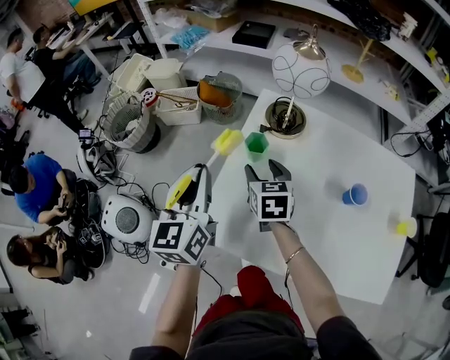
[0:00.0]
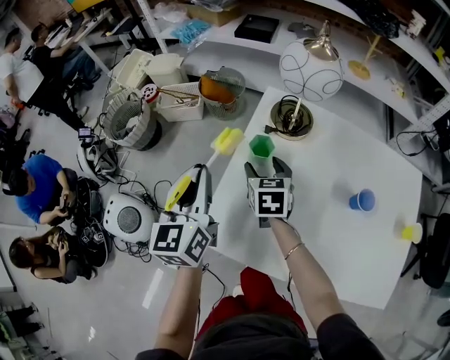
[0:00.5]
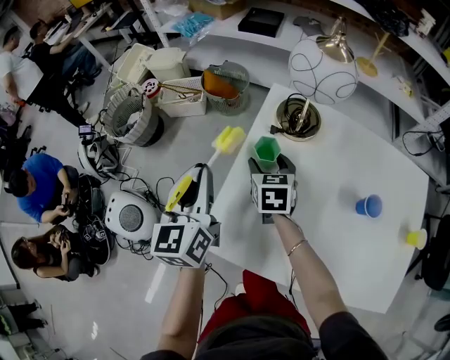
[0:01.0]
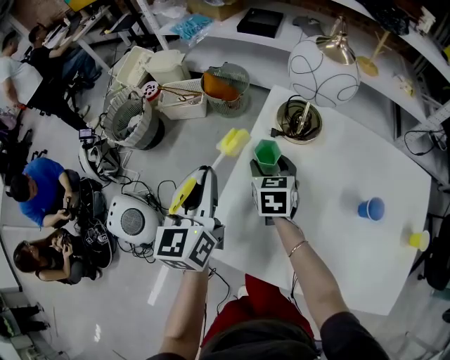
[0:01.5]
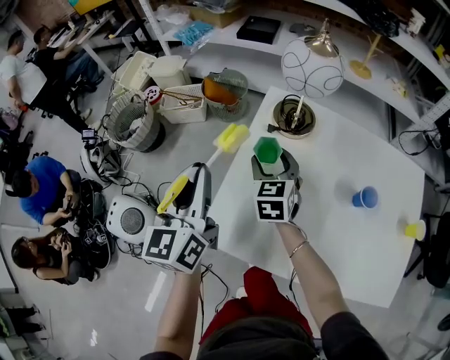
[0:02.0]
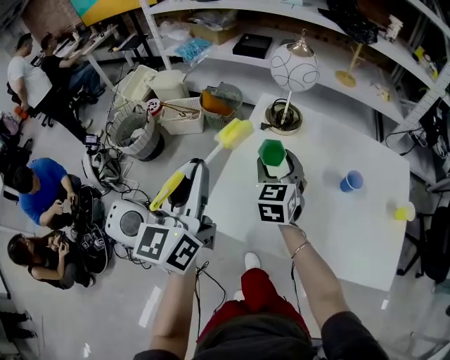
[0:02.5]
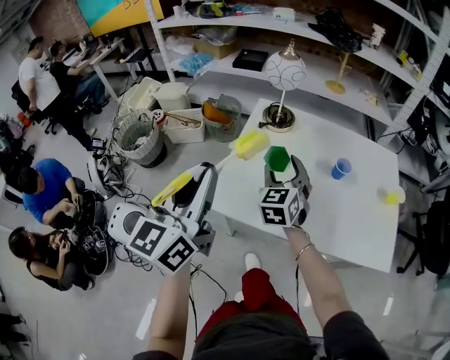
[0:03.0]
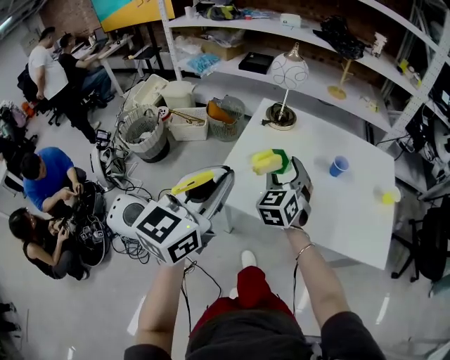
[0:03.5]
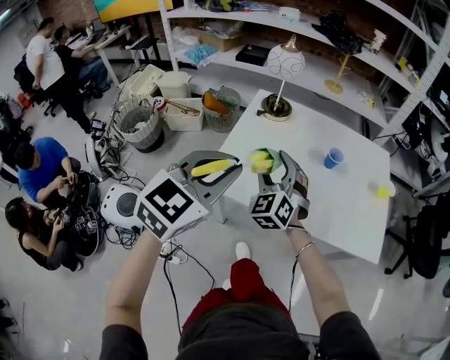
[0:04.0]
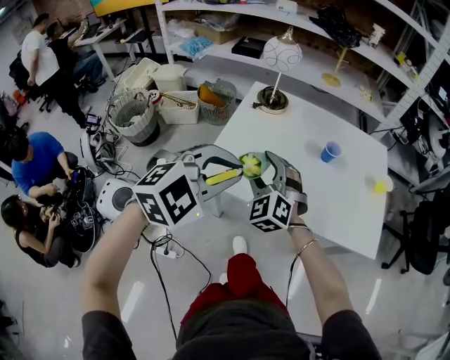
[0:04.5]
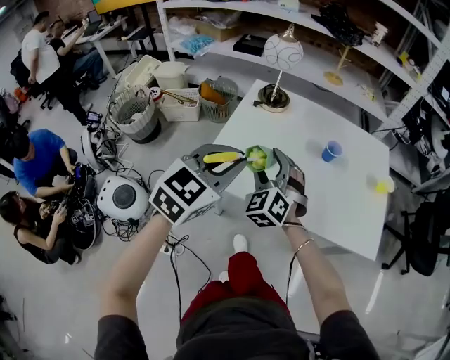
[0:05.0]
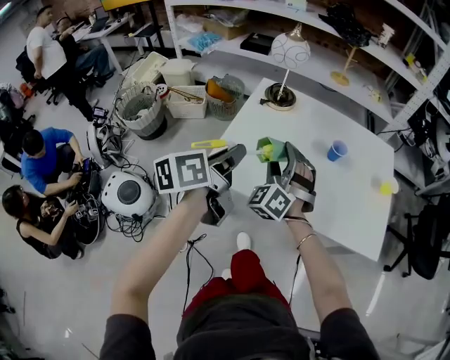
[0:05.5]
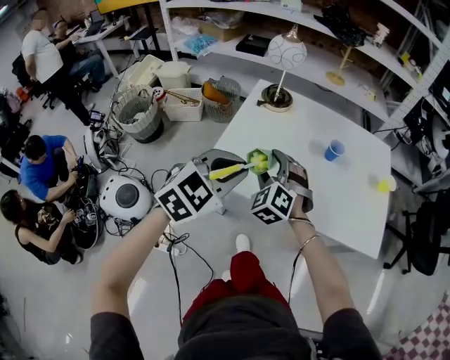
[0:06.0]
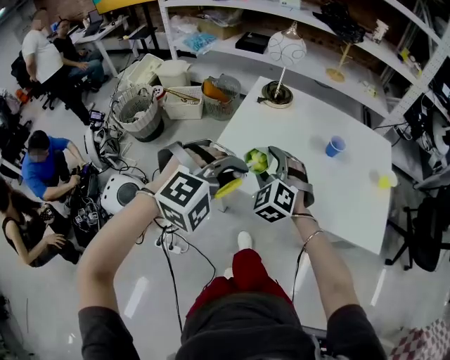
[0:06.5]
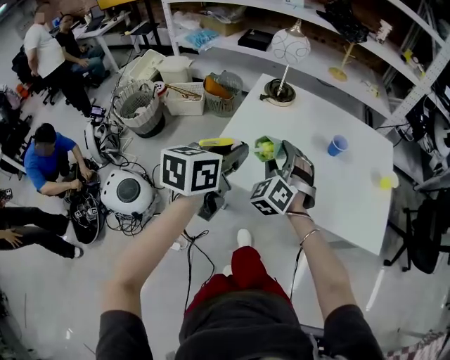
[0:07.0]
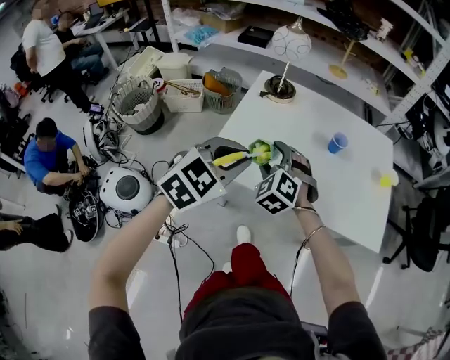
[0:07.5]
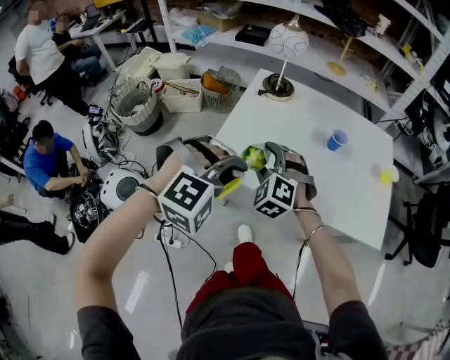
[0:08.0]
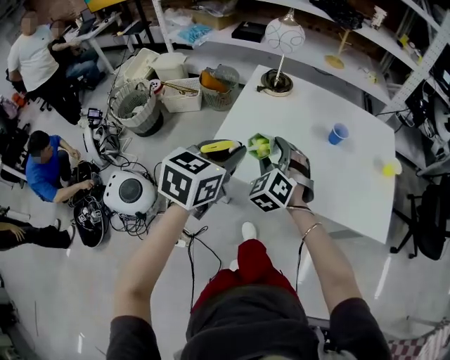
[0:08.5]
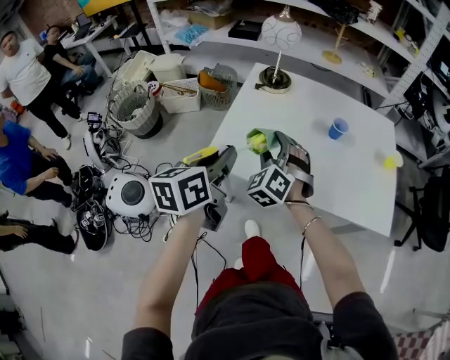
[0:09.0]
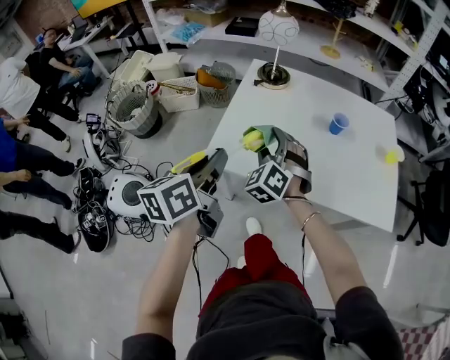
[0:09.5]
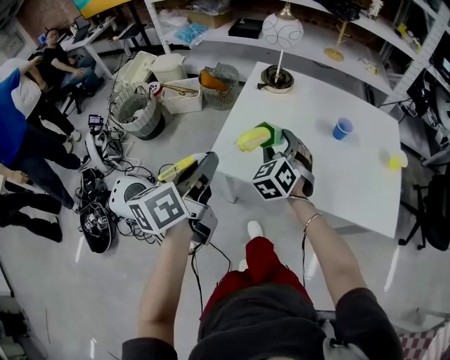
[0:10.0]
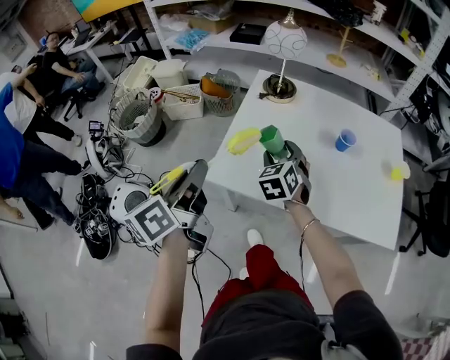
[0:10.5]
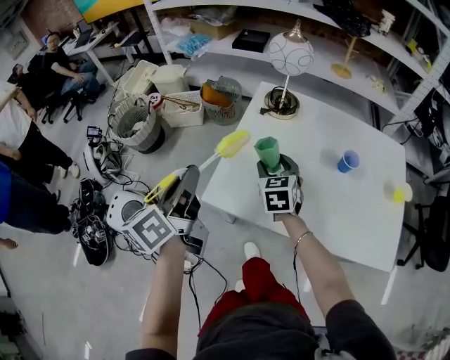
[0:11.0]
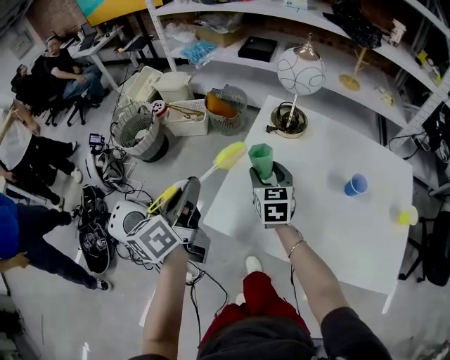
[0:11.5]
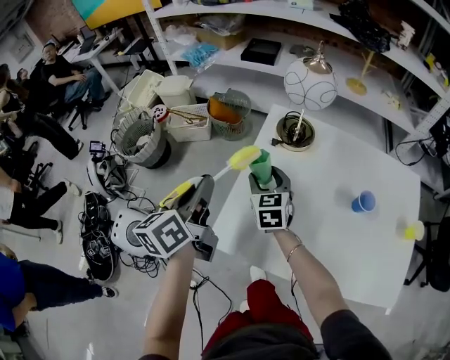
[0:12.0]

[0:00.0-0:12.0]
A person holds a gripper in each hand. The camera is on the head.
0:02.0 to 0:04.0: The right gripper heads backward and upward, covering roughly 25 cm, and turns by approximately 40 degrees, while the left gripper moves backward and to the right, approximately 25 cm, and rotates some 50 degrees.
0:04.0 to 0:06.0: The left gripper moves downward, approximately 10 cm. The right gripper ends up about 5 cm from where it was.
0:06.0 to 0:08.0: The left gripper rotates around the line of its fingers by roughly 50 degrees, clockwise from behind.
0:08.0 to 0:10.0: The right gripper moves forward, roughly 5 cm, and turns by about 30 degrees; the left gripper moves to the left, some 10 cm, and twists approximately 120 degrees counterclockwise, seen from behind.
0:10.0 to 0:12.0: The left gripper shifts some 20 cm forward. The right gripper goes some 20 cm forward and to the left, and turns by about 40 degrees.

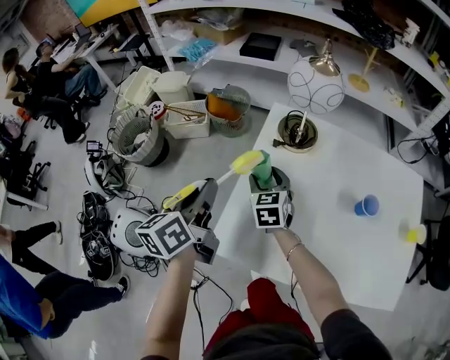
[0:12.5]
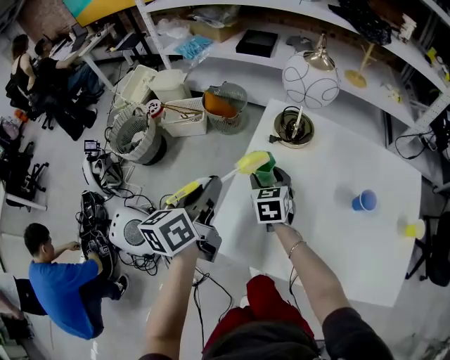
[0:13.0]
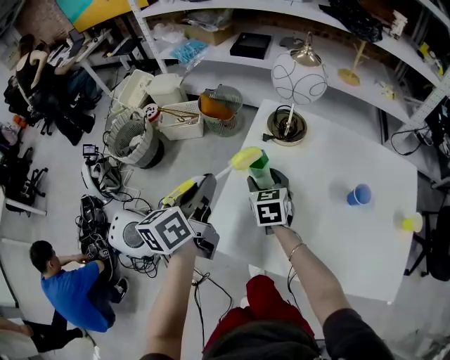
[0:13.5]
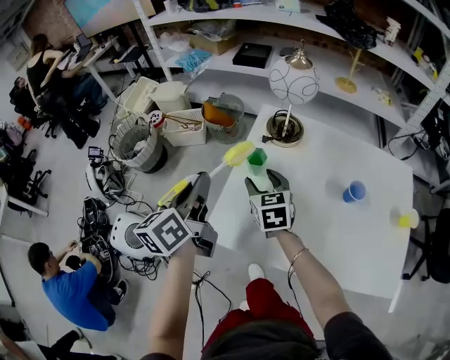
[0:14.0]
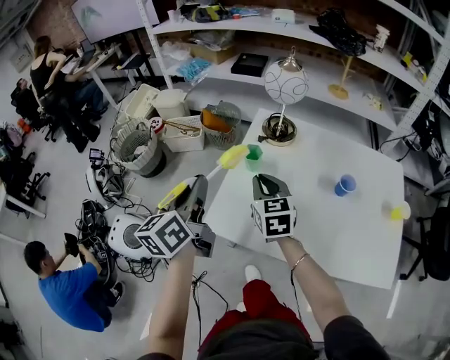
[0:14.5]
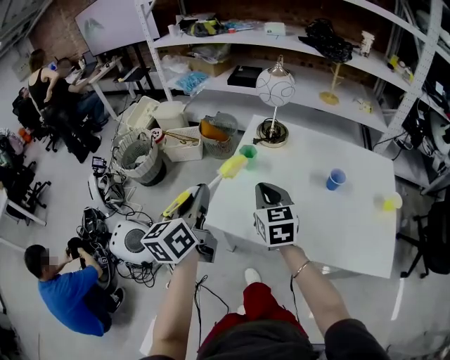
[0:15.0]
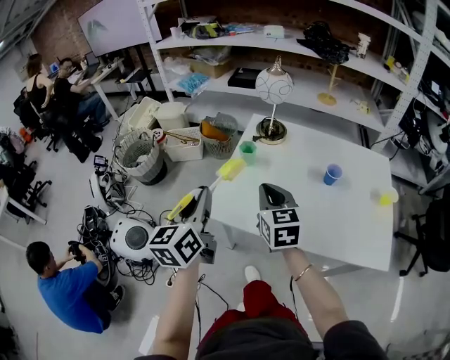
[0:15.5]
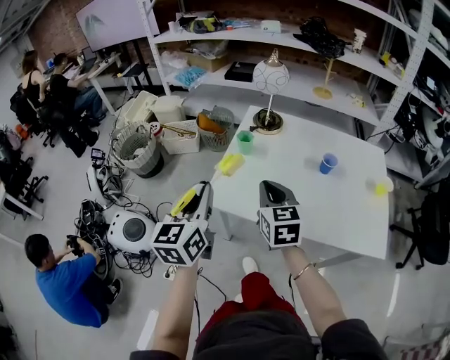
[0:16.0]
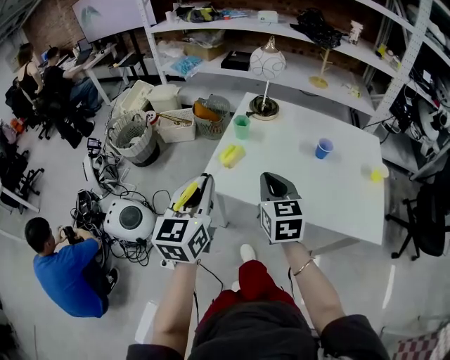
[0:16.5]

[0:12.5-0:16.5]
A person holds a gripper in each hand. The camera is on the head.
0:12.5 to 0:14.5: The grippers both shift backward and upward by approximately 15 cm. The right gripper closes up.
0:14.5 to 0:16.5: The grippers both shift backward by about 20 cm. The left gripper turns by roughly 30 degrees.

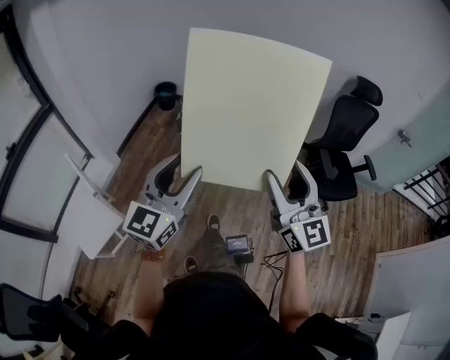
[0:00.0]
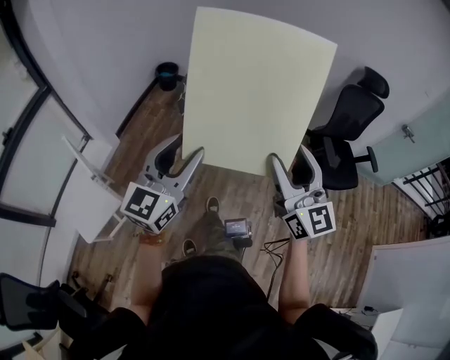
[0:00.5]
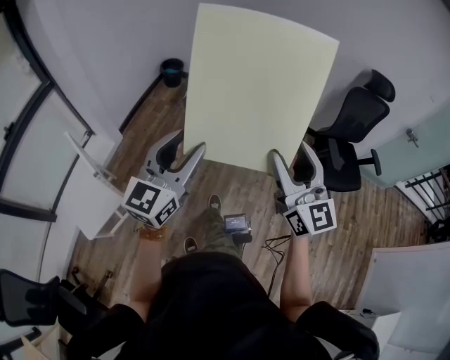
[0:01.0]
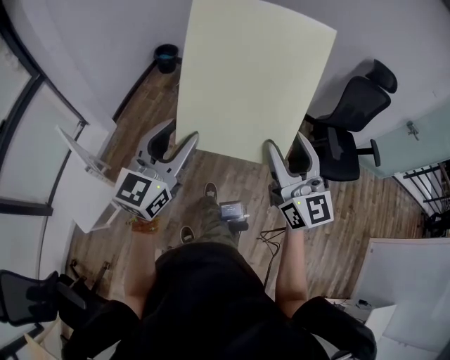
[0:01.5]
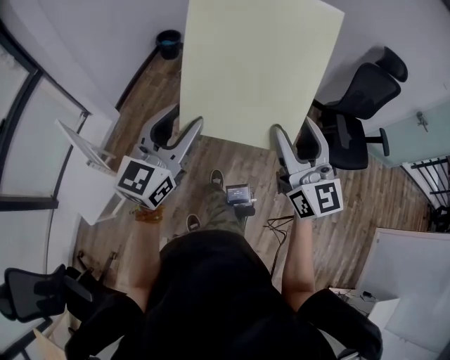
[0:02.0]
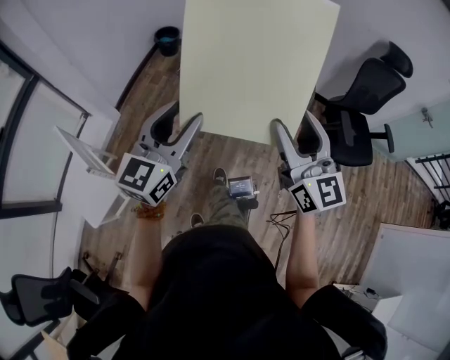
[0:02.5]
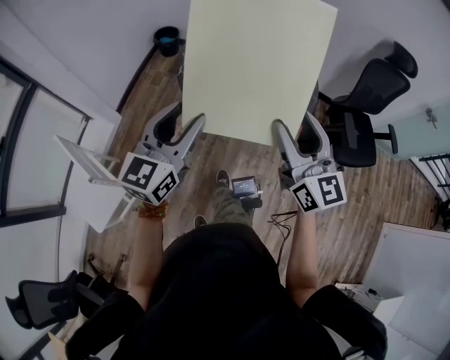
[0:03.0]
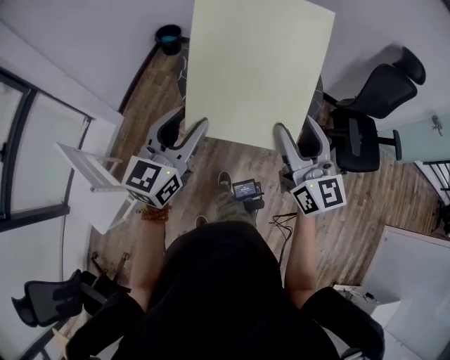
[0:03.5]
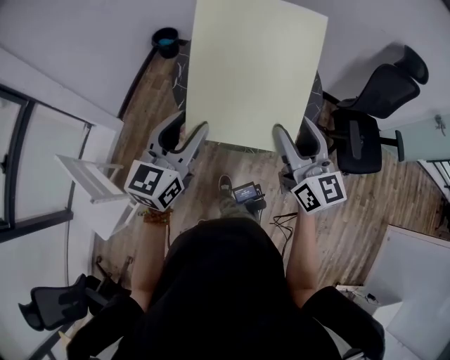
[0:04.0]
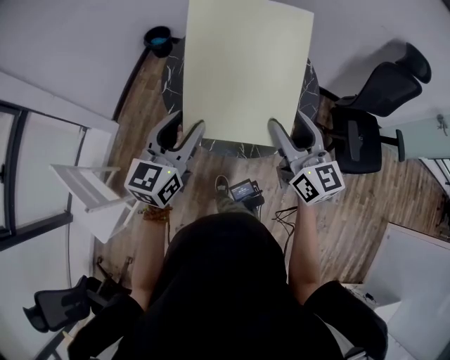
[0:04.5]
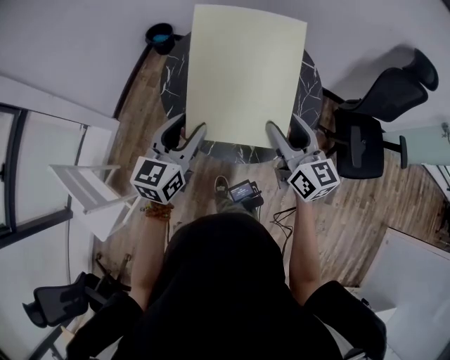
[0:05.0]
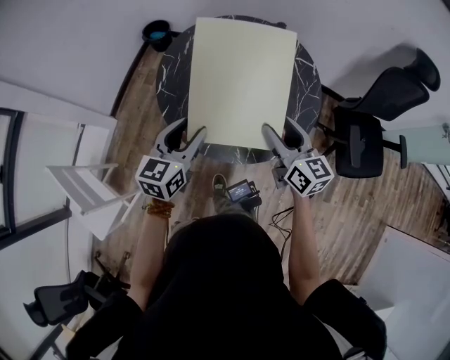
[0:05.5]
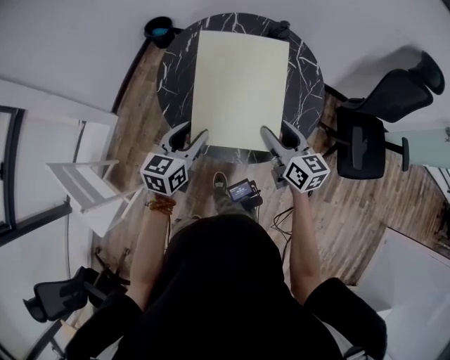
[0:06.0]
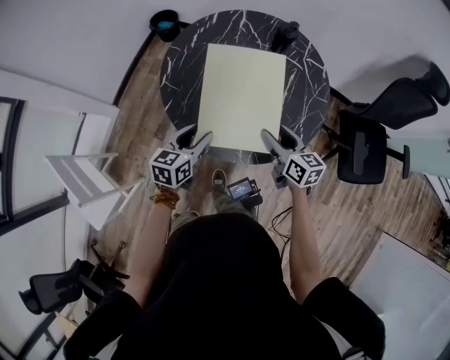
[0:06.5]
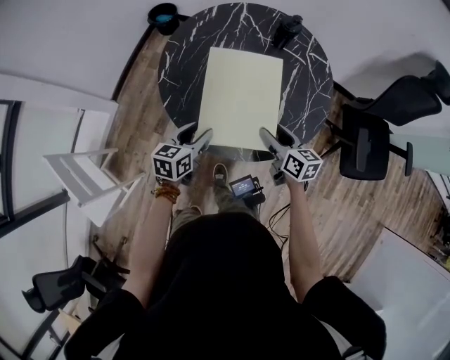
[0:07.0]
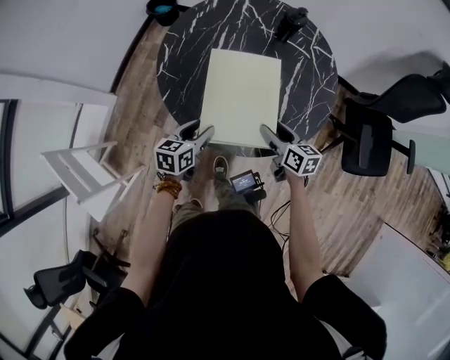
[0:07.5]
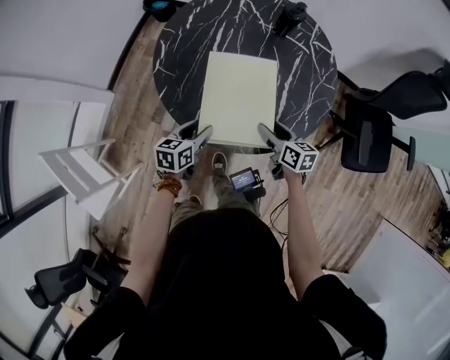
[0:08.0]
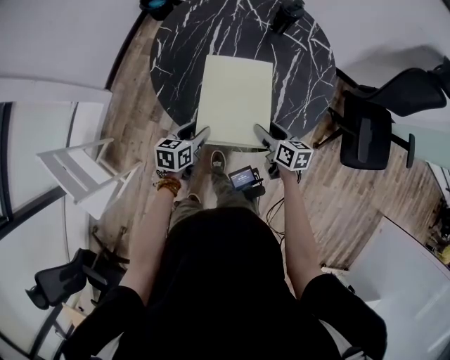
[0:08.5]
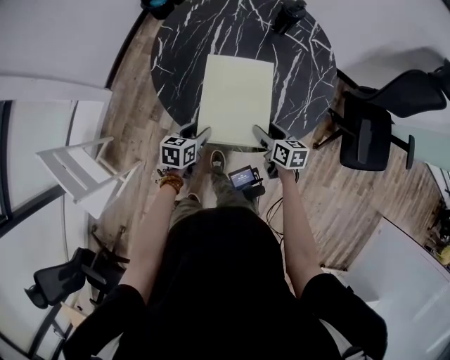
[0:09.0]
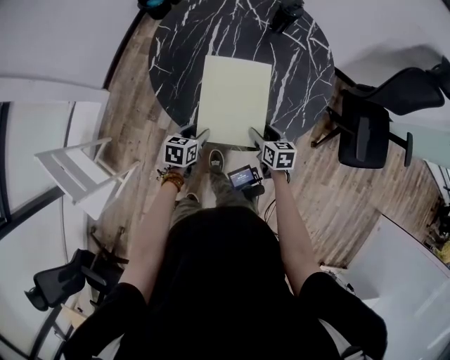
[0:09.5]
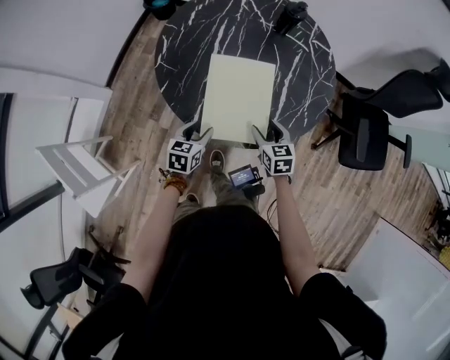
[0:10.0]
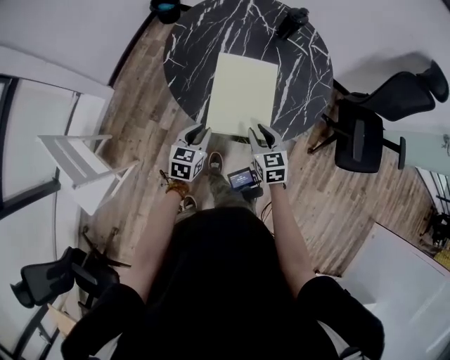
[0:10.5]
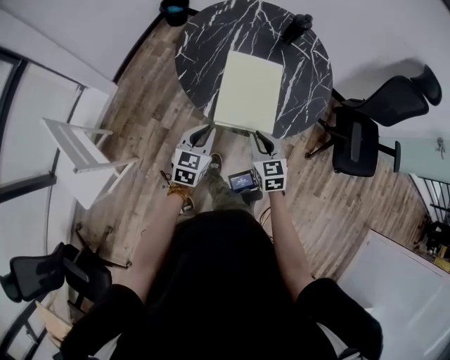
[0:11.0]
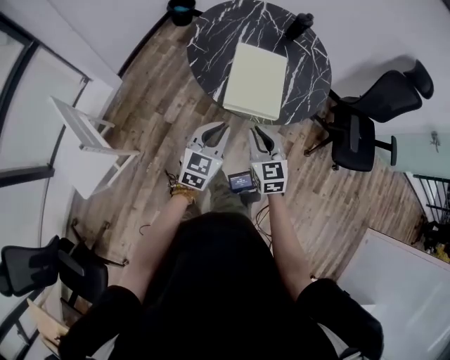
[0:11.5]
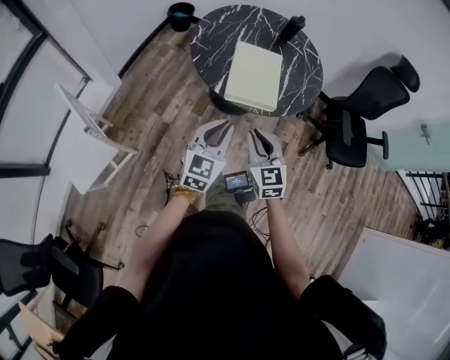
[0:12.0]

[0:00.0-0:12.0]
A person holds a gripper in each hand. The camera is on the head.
0:00.0 to 0:02.0: Both grippers move forward, roughly 10 cm.
0:02.0 to 0:04.0: Both grippers travel together forward, about 20 cm.
0:04.0 to 0:06.0: The two grippers go about 20 cm downward and forward. The left gripper turns by some 20 degrees; the right gripper changes its angle by about 20 degrees.
0:06.0 to 0:08.0: The grippers both shift downward by approximately 15 cm. The left gripper swivels approximately 20 degrees; the right gripper changes its angle by approximately 20 degrees.
0:08.0 to 0:10.0: The right gripper swivels roughly 30 degrees.
0:10.0 to 0:12.0: The right gripper travels backward, upward and to the left by some 40 cm, swivels roughly 30 degrees, and closes its fingers. Meanwhile the left gripper is displaced backward and upward by roughly 35 cm, tips its fingers upward by some 30 degrees, and closes its fingers.
